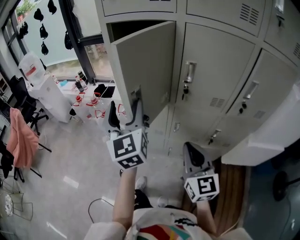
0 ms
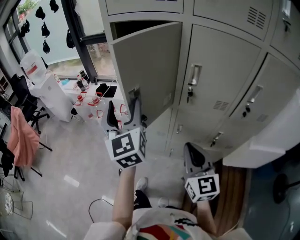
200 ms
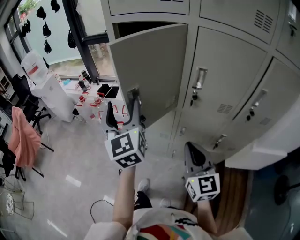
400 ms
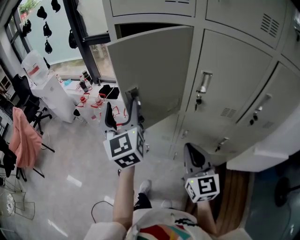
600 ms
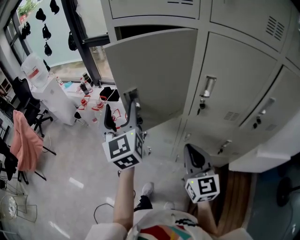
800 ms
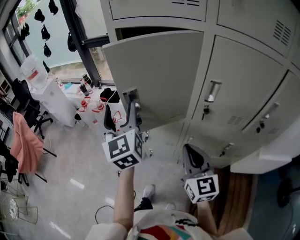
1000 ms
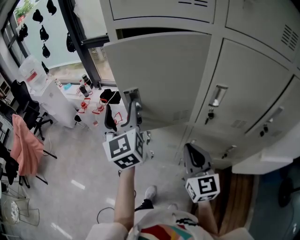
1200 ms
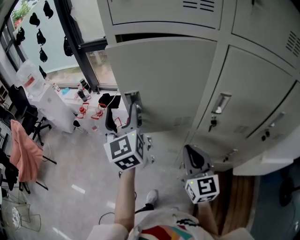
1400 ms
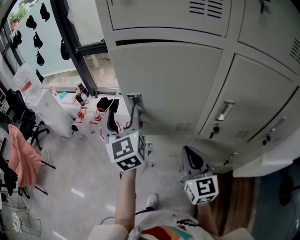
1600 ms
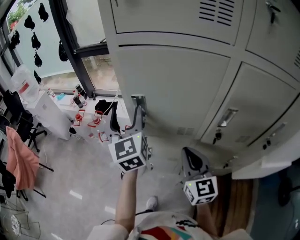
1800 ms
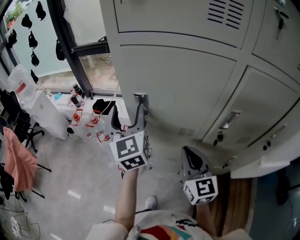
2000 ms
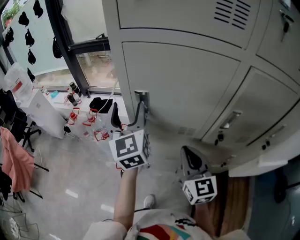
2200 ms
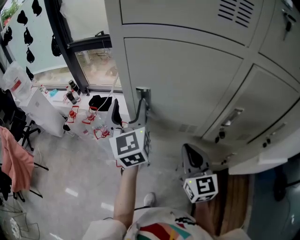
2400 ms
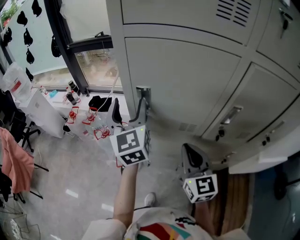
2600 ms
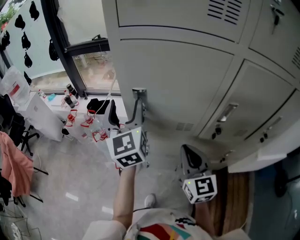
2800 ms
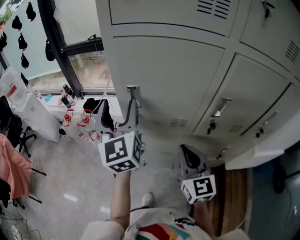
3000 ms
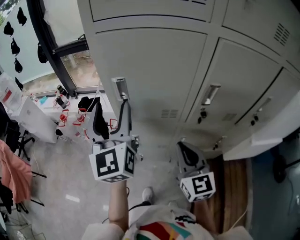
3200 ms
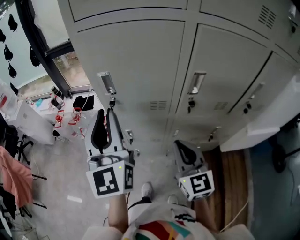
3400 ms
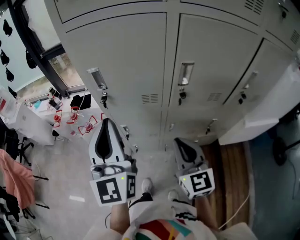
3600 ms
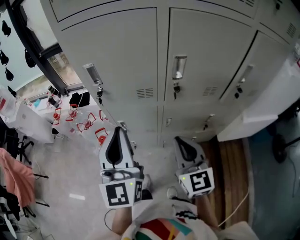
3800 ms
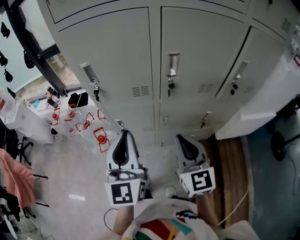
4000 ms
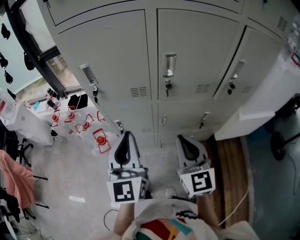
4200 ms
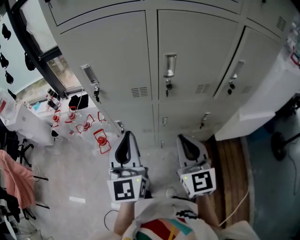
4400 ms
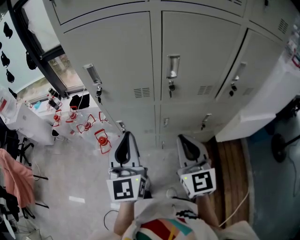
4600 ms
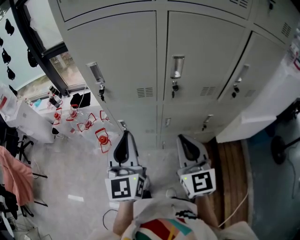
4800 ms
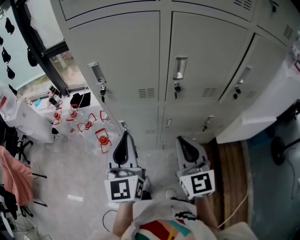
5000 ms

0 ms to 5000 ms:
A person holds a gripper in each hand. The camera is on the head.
0 ms to 1600 ms: The two grippers go about 20 cm forward.
1600 ms to 3400 ms: The left gripper is displaced backward by about 10 cm, and closes; the right gripper is displaced backward by about 5 cm.
3400 ms to 5000 ms: The left gripper shifts roughly 15 cm downward, backward and to the right. Meanwhile the right gripper is displaced backward by roughly 5 cm.

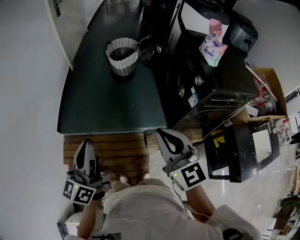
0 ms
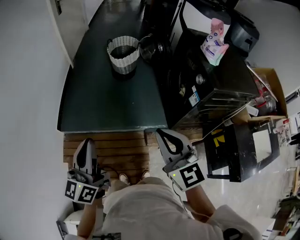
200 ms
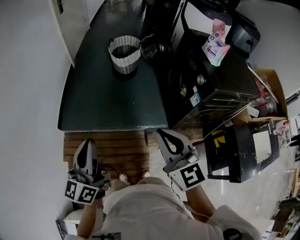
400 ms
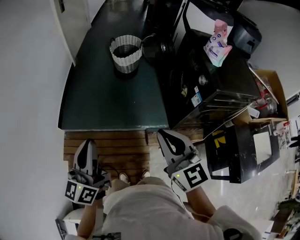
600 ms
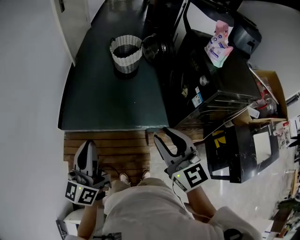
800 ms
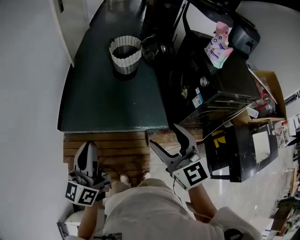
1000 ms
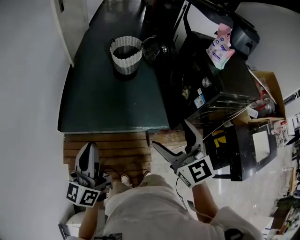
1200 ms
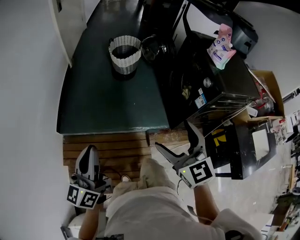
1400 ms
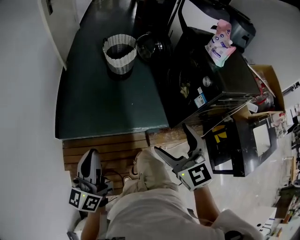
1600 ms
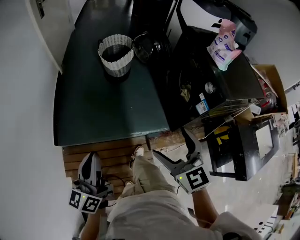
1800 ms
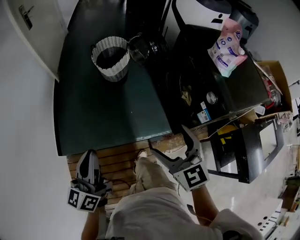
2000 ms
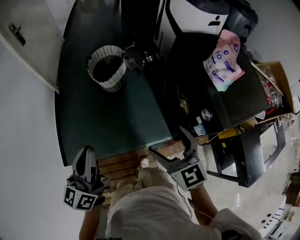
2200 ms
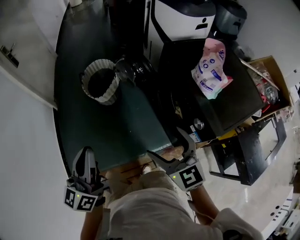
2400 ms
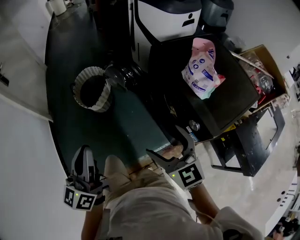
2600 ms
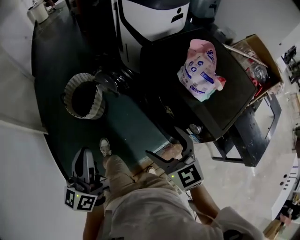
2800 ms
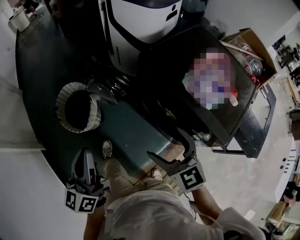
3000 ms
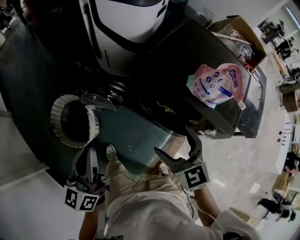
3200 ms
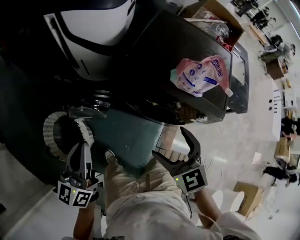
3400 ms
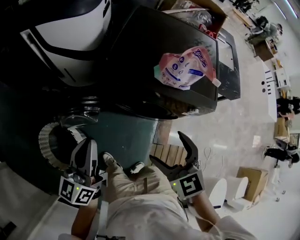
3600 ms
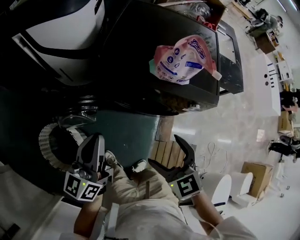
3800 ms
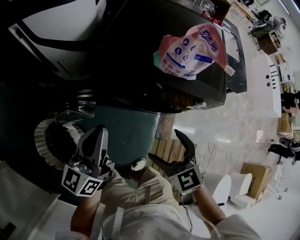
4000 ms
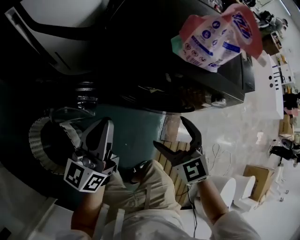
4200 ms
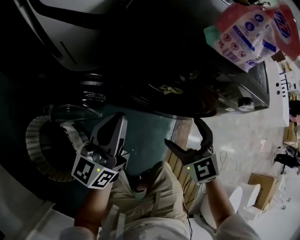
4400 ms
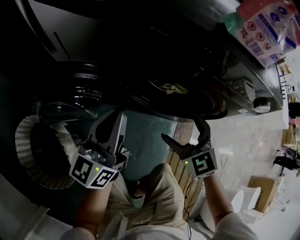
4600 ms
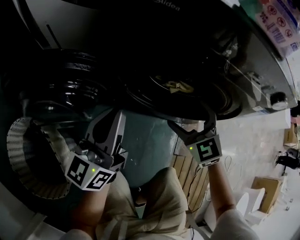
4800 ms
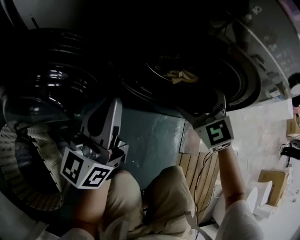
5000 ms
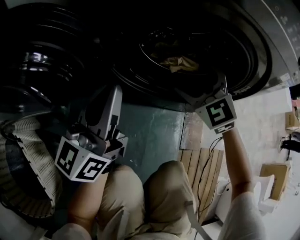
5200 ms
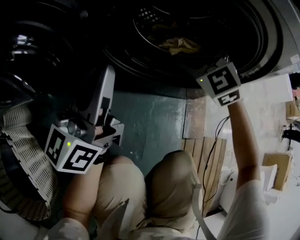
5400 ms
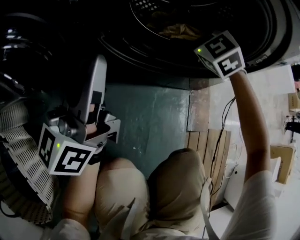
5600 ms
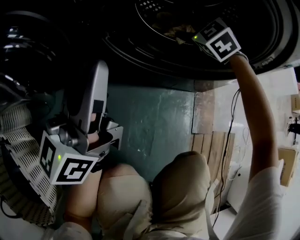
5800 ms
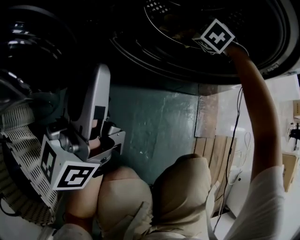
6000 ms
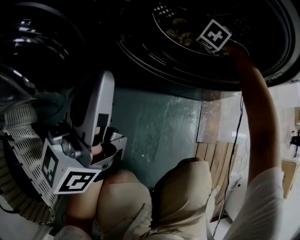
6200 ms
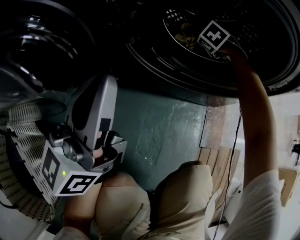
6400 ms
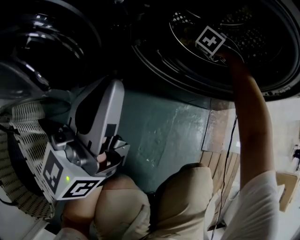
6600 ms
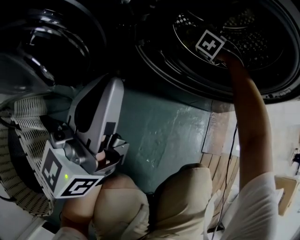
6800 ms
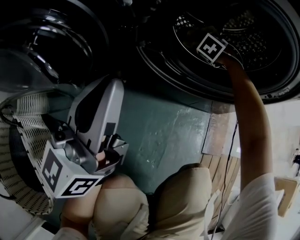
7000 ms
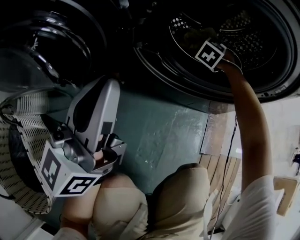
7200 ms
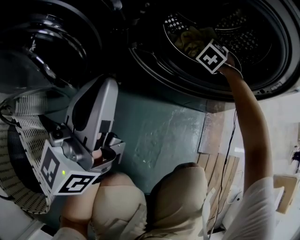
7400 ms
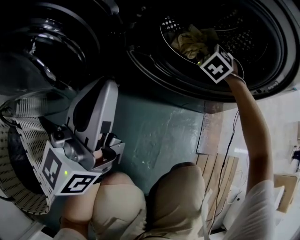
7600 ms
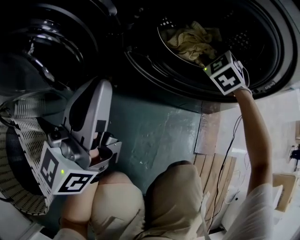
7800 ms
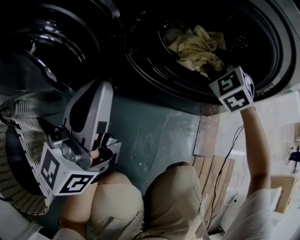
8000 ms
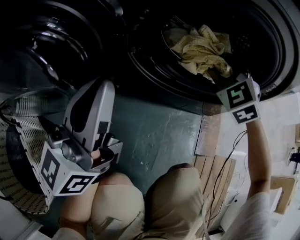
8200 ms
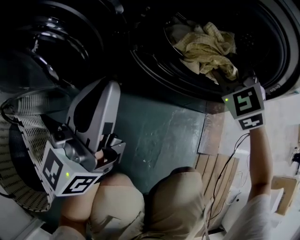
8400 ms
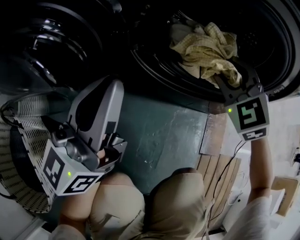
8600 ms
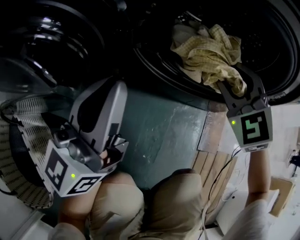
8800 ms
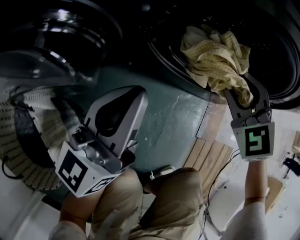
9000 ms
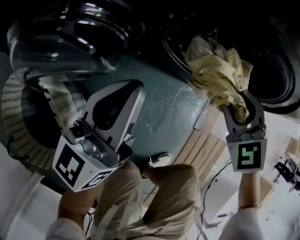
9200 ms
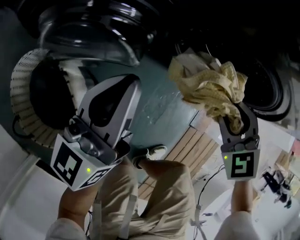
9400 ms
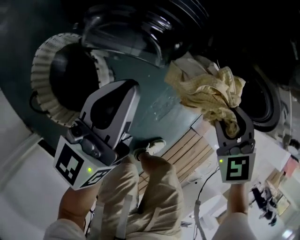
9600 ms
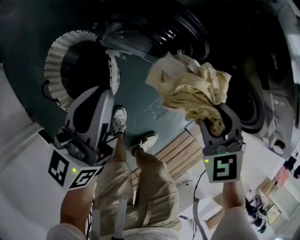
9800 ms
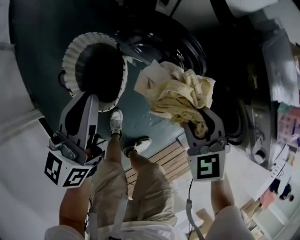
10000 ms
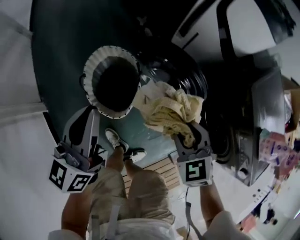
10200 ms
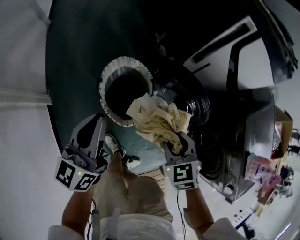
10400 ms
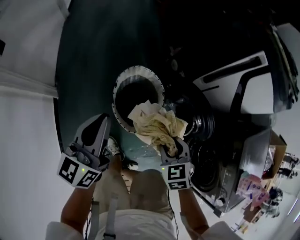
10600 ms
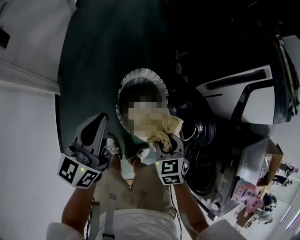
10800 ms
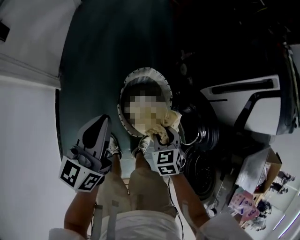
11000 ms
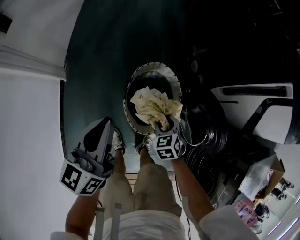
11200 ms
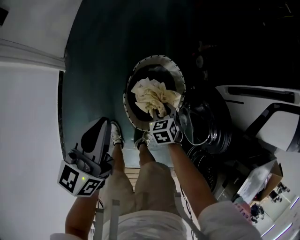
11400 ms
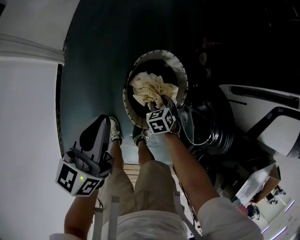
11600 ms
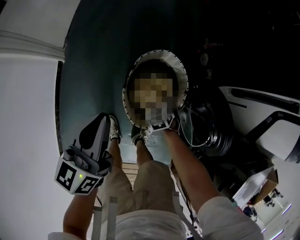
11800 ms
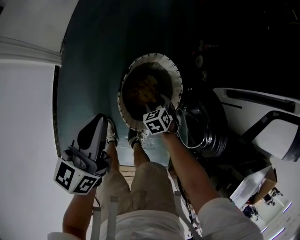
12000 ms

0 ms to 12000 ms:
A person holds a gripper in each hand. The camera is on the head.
0 ms to 1600 ms: The left gripper goes about 5 cm to the left. The right gripper shifts about 5 cm downward, and opens its fingers.
1600 ms to 3000 ms: The pair of grippers is taken roughly 50 cm. The left gripper swivels about 30 degrees; the right gripper swivels some 30 degrees.
3000 ms to 4400 ms: The two grippers go some 25 cm downward. The left gripper swivels approximately 50 degrees, while the right gripper changes its angle by approximately 40 degrees.
4400 ms to 6000 ms: The right gripper shifts some 40 cm downward and forward, and swivels approximately 40 degrees, while the left gripper is displaced downward by about 25 cm.
6000 ms to 7600 ms: The right gripper reaches approximately 5 cm downward, then returns, and closes its fingers.
7600 ms to 9000 ms: The right gripper moves backward and upward, some 20 cm, and turns by approximately 20 degrees.
9000 ms to 10400 ms: The right gripper moves about 15 cm. Meanwhile the left gripper reaches about 5 cm downward, then returns, and turns by roughly 40 degrees.
10400 ms to 12000 ms: The left gripper moves downward, to the left and forward, roughly 15 cm, and rotates some 30 degrees, while the right gripper shifts about 35 cm downward and forward, and swivels about 30 degrees.

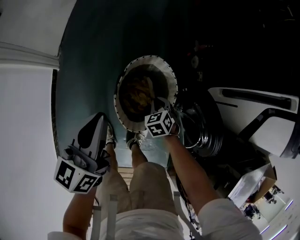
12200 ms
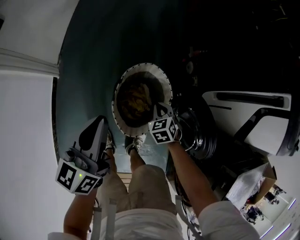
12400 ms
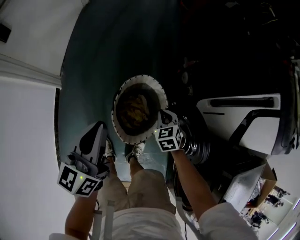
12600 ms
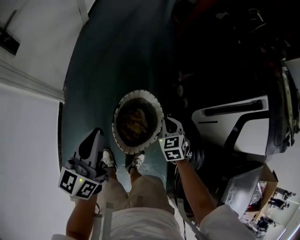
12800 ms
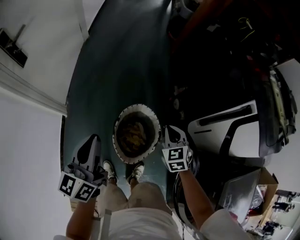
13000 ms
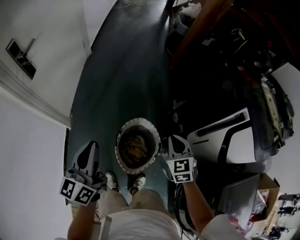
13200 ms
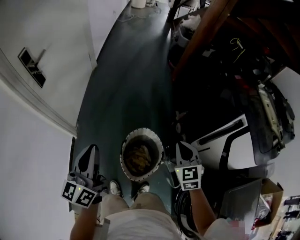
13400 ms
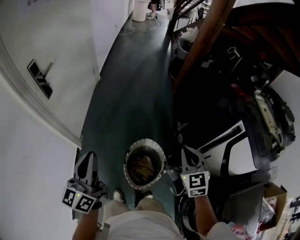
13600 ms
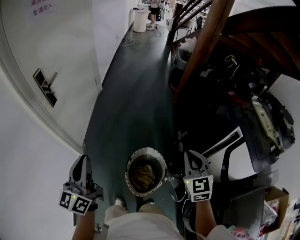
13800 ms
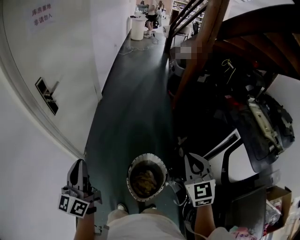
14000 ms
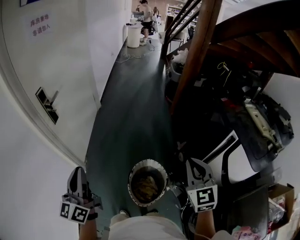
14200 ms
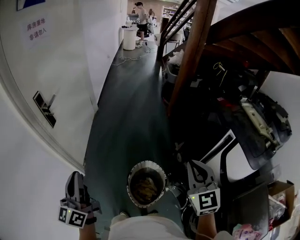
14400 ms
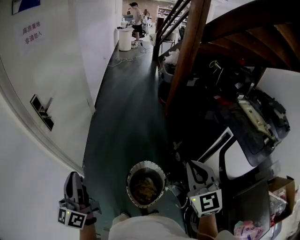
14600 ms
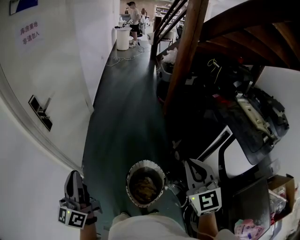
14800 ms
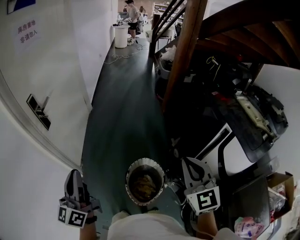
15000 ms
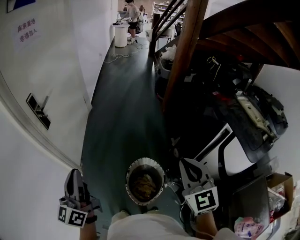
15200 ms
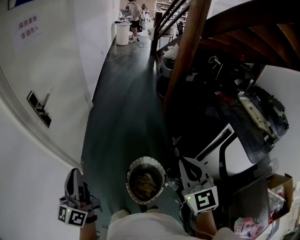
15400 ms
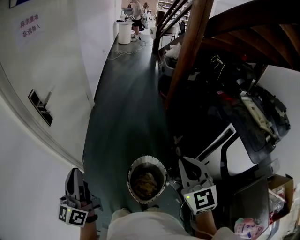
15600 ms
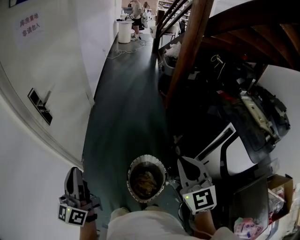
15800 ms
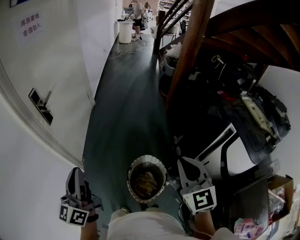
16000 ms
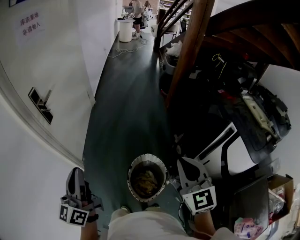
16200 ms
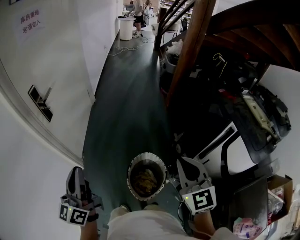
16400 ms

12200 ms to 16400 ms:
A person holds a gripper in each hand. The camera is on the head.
12200 ms to 13600 ms: The left gripper heads upward, to the left and backward, covering about 30 cm, and swivels about 20 degrees, while the right gripper heads upward, covering some 50 cm, and points its fingers roughly 40 degrees further upward.
13600 ms to 15000 ms: The right gripper shifts about 15 cm upward, backward and to the left. Meanwhile the left gripper travels to the left by some 5 cm.
15000 ms to 16400 ms: The grippers make only small movements.

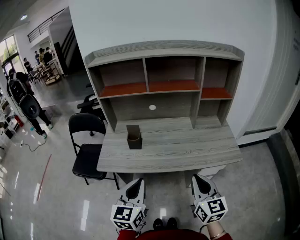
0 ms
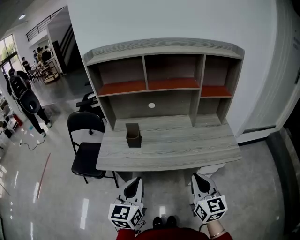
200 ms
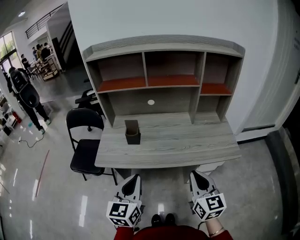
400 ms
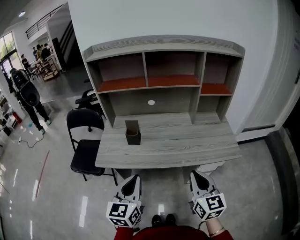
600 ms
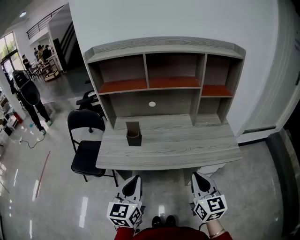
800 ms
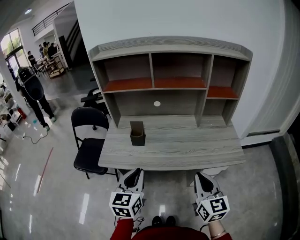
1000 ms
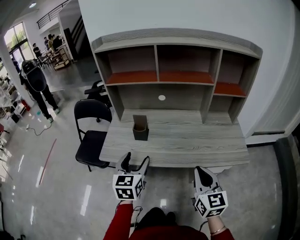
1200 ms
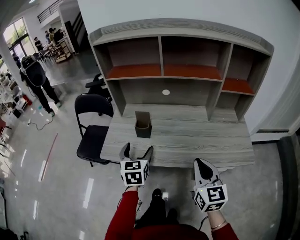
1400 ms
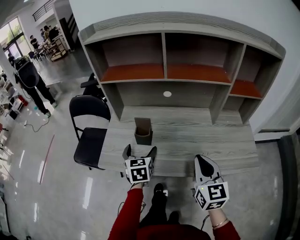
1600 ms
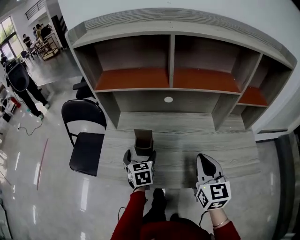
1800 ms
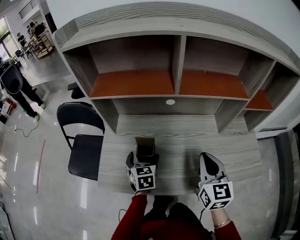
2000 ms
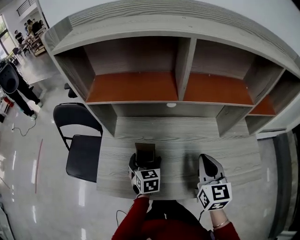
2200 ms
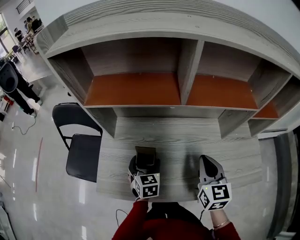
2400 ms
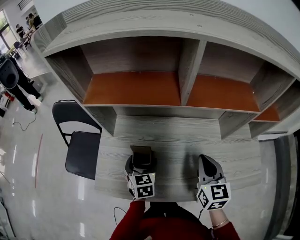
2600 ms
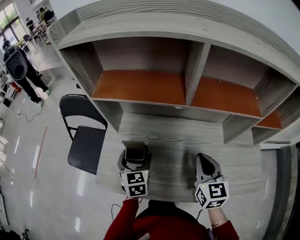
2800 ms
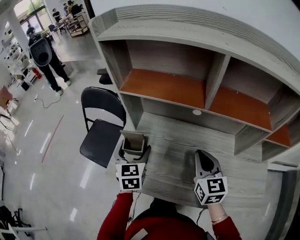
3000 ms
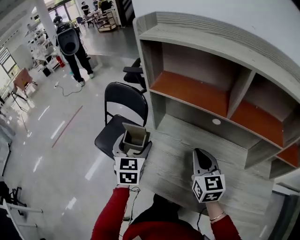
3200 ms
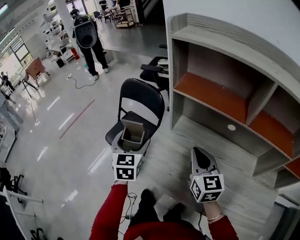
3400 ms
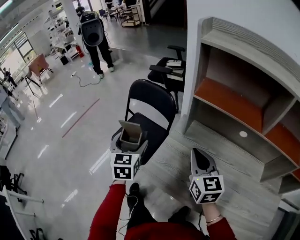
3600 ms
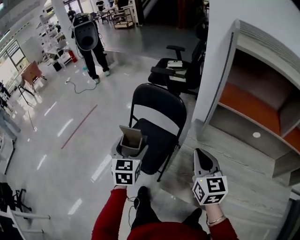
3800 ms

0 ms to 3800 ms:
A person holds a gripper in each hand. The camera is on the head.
0 ms to 1200 ms: The left gripper travels forward by roughly 10 cm, and opens.
1200 ms to 2600 ms: The right gripper moves forward, some 25 cm, while the left gripper is displaced forward and downward by roughly 25 cm, and swivels about 20 degrees.
2600 ms to 3800 ms: The left gripper moves approximately 40 cm, and turns by some 20 degrees, while the right gripper changes place by some 35 cm, and turns by approximately 30 degrees.
